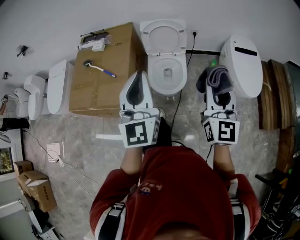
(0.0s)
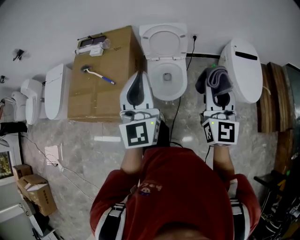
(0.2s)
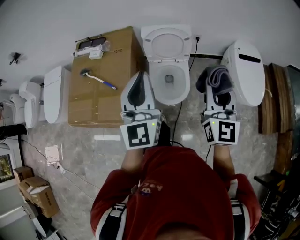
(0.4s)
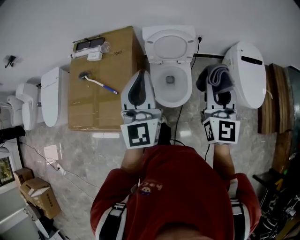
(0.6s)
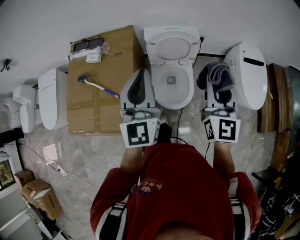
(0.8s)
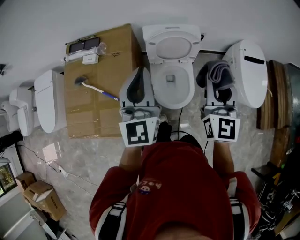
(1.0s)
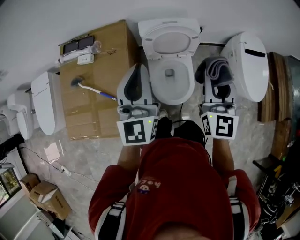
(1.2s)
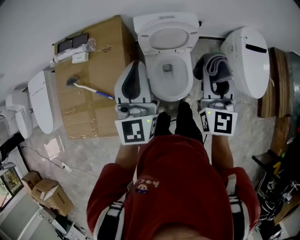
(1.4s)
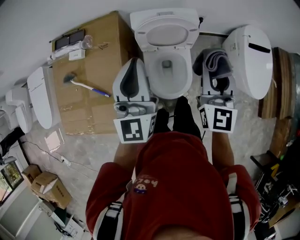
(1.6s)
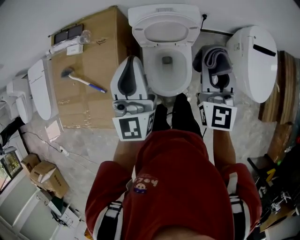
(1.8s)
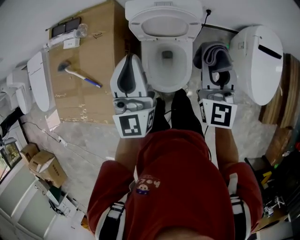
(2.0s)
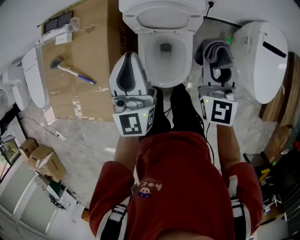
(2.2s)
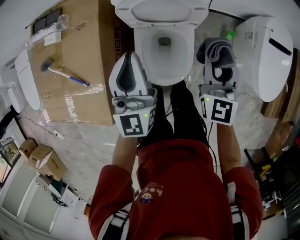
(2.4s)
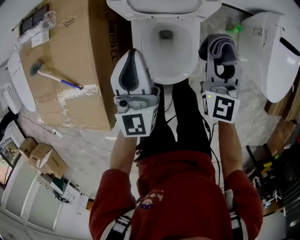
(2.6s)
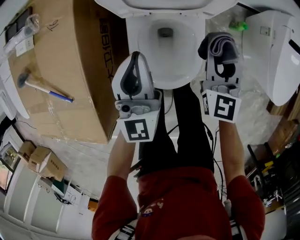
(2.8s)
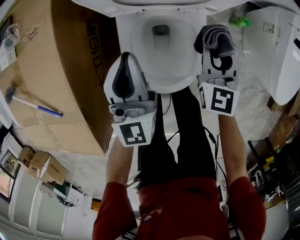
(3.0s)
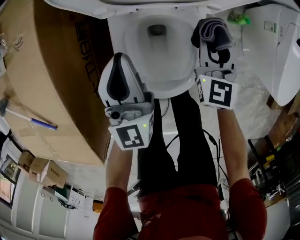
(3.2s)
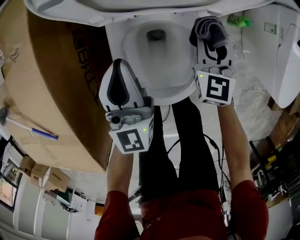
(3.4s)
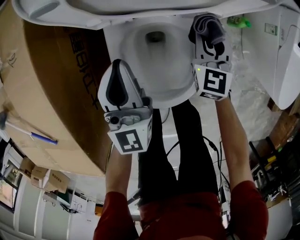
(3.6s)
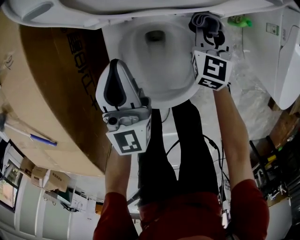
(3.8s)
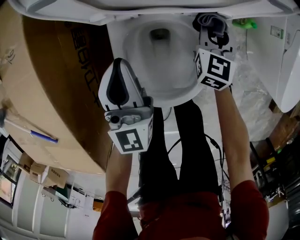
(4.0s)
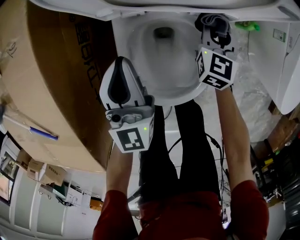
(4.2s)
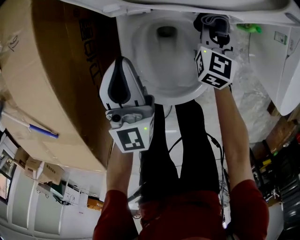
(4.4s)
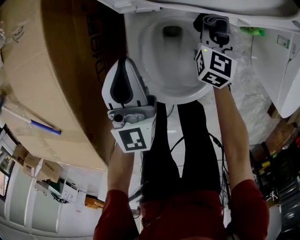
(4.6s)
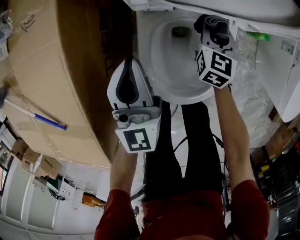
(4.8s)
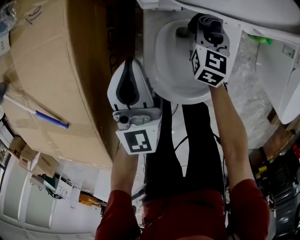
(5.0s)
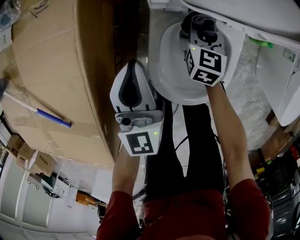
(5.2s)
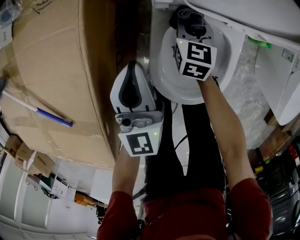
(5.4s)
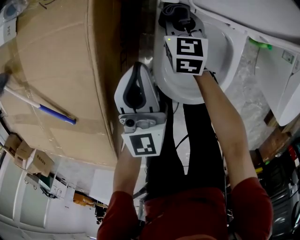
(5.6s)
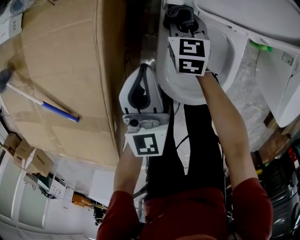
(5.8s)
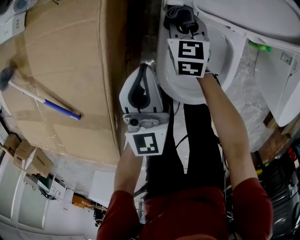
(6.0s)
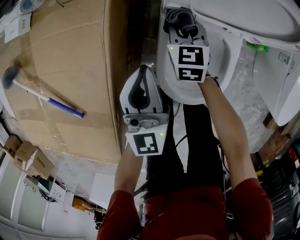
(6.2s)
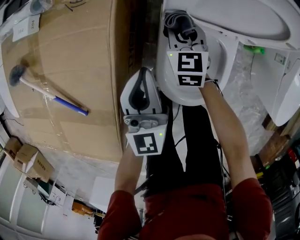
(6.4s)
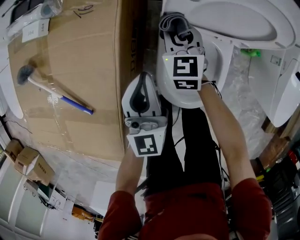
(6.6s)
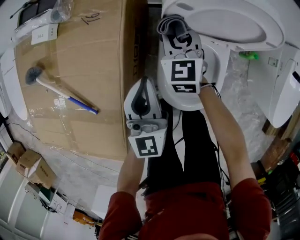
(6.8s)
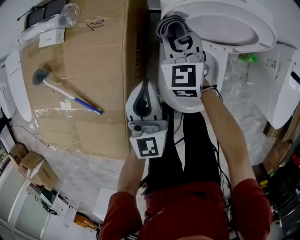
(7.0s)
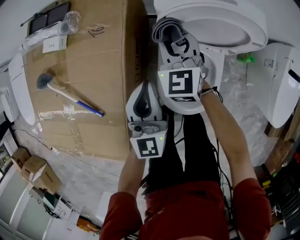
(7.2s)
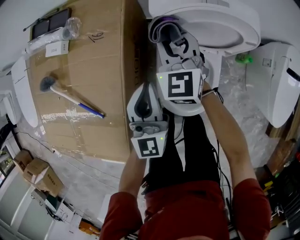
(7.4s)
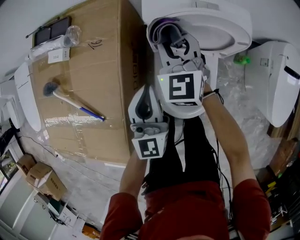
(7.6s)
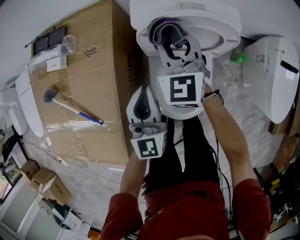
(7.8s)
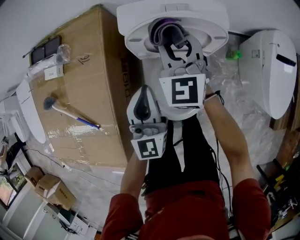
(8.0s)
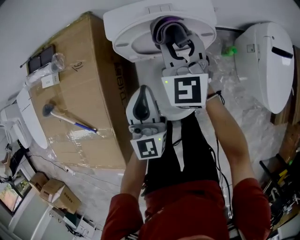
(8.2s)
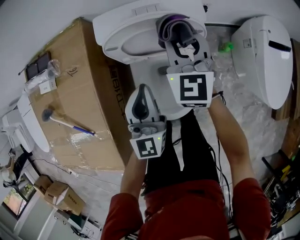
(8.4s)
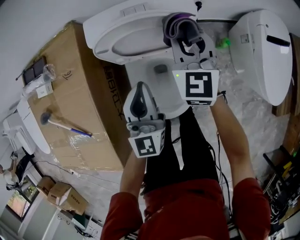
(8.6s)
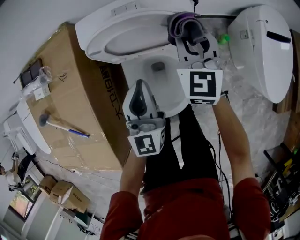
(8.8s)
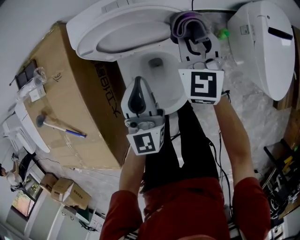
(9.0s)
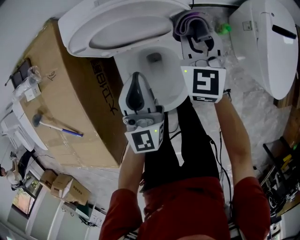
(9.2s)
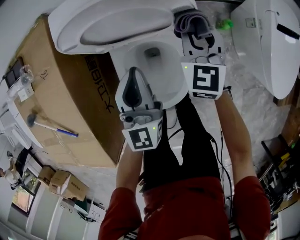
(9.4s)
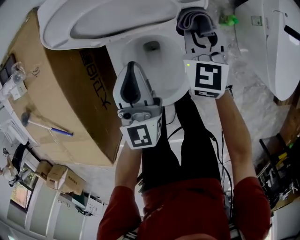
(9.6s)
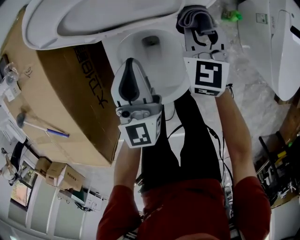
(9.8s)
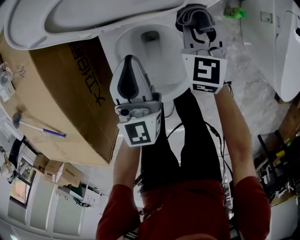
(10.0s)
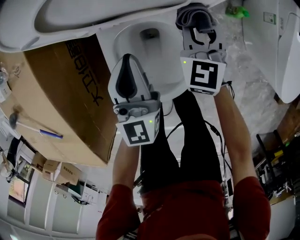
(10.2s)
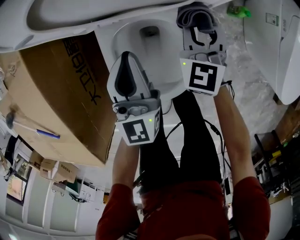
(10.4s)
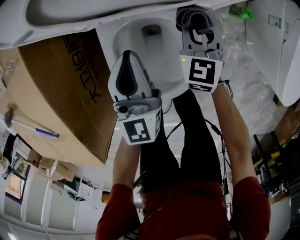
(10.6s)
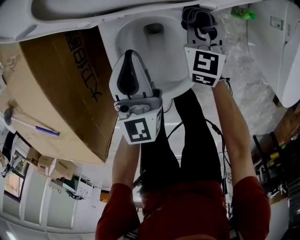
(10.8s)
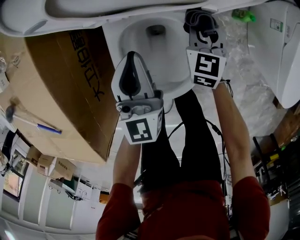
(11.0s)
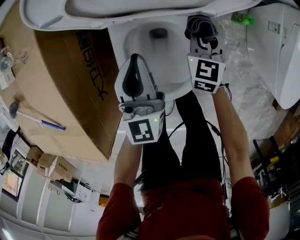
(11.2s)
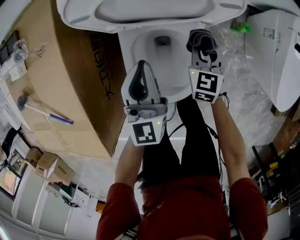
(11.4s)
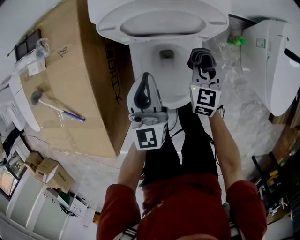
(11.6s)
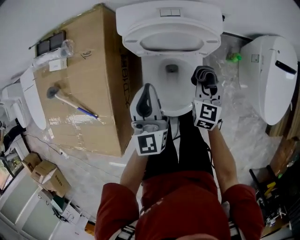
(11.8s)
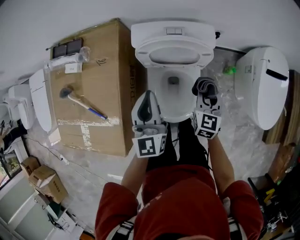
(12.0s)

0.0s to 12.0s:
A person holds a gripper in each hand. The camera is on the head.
0.0s to 1.6s: Both grippers move forward, some 35 cm.
1.6s to 3.0s: Both grippers move downward, about 40 cm.
3.0s to 4.4s: The right gripper goes about 15 cm downward and forward. Meanwhile the left gripper goes roughly 10 cm downward.
4.4s to 6.0s: The left gripper heads to the left, covering roughly 10 cm. The right gripper is displaced to the left by roughly 25 cm, and swivels roughly 20 degrees.
6.0s to 7.6s: The left gripper shifts approximately 15 cm upward. The right gripper moves upward, roughly 30 cm, and changes its angle by some 30 degrees.
7.6s to 9.0s: The right gripper travels to the right by about 25 cm, and rotates approximately 20 degrees. The left gripper moves to the right, approximately 15 cm.
9.0s to 10.4s: Both grippers travel together downward, about 15 cm.
10.4s to 12.0s: The right gripper shifts about 20 cm upward and backward. The left gripper shifts about 25 cm upward.

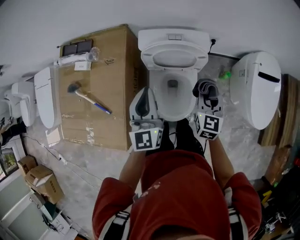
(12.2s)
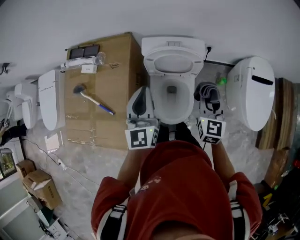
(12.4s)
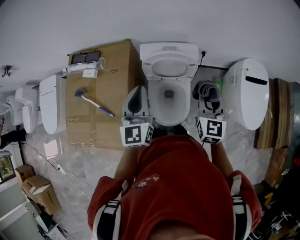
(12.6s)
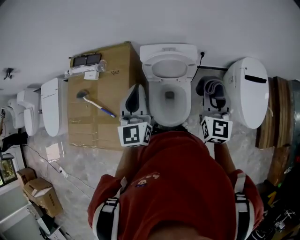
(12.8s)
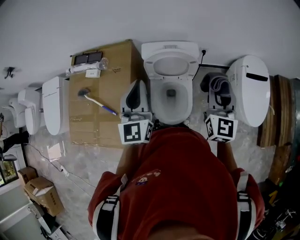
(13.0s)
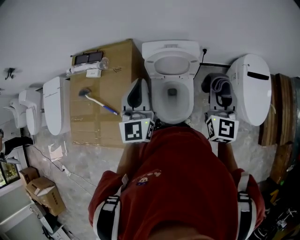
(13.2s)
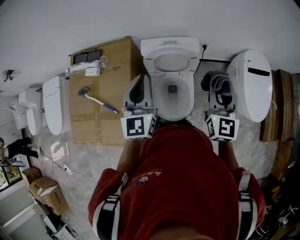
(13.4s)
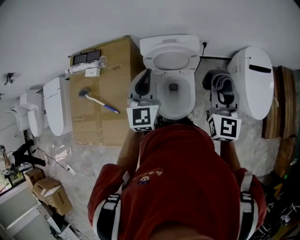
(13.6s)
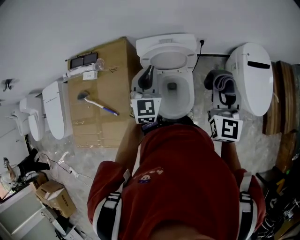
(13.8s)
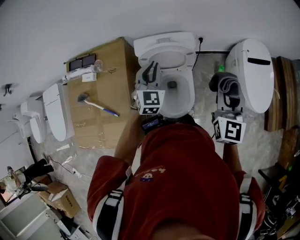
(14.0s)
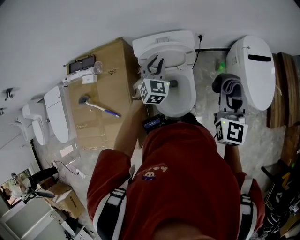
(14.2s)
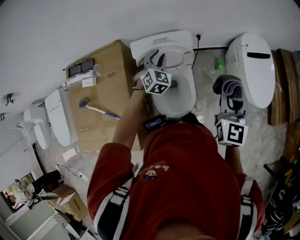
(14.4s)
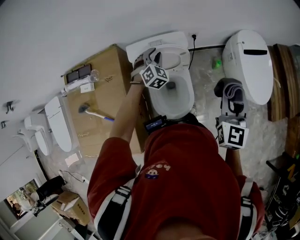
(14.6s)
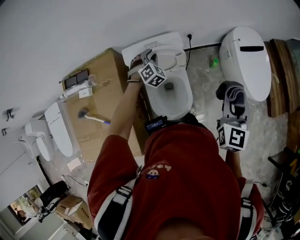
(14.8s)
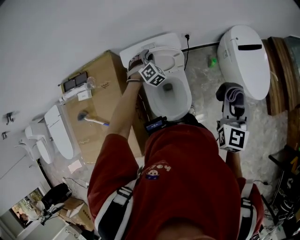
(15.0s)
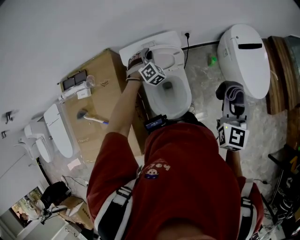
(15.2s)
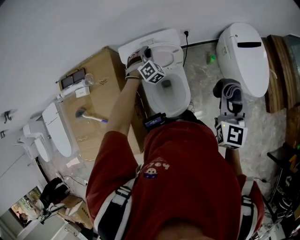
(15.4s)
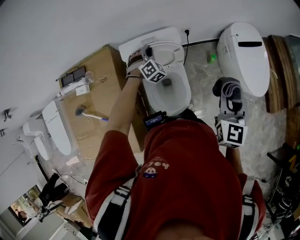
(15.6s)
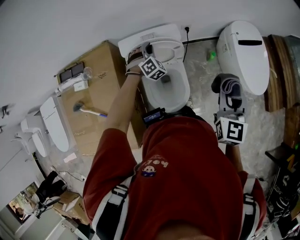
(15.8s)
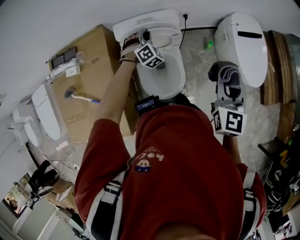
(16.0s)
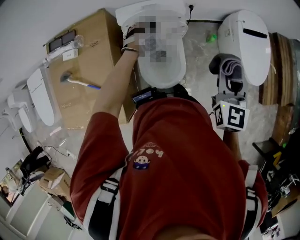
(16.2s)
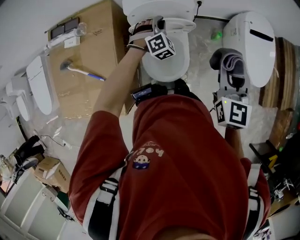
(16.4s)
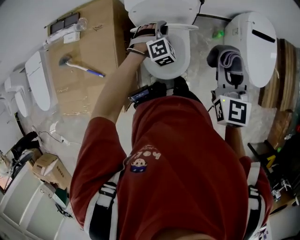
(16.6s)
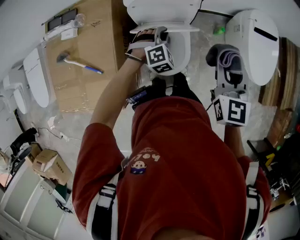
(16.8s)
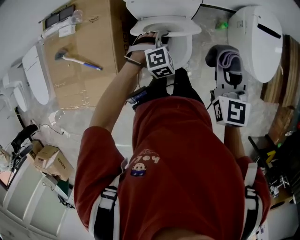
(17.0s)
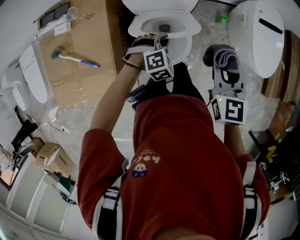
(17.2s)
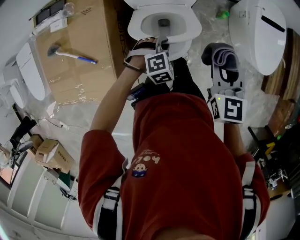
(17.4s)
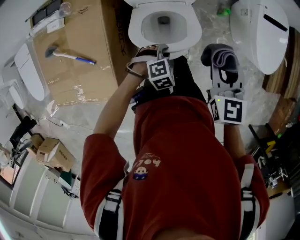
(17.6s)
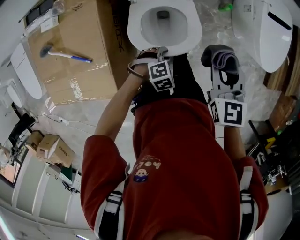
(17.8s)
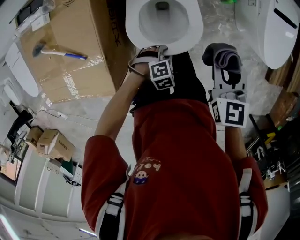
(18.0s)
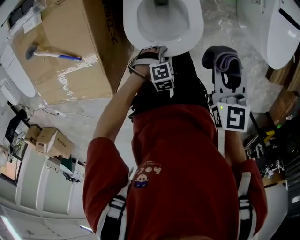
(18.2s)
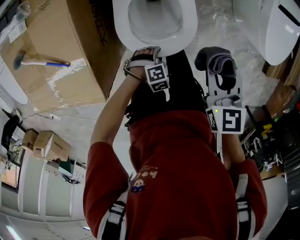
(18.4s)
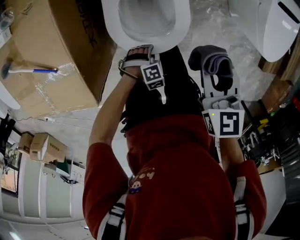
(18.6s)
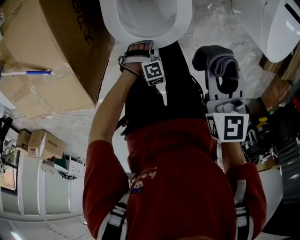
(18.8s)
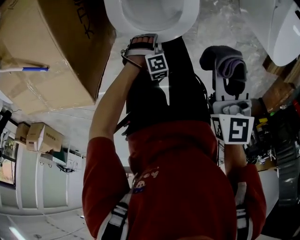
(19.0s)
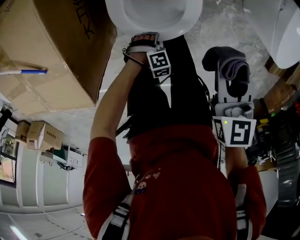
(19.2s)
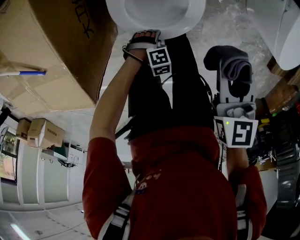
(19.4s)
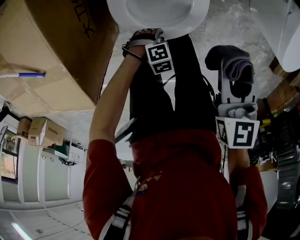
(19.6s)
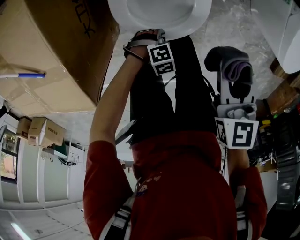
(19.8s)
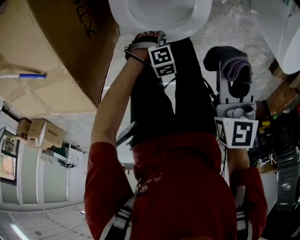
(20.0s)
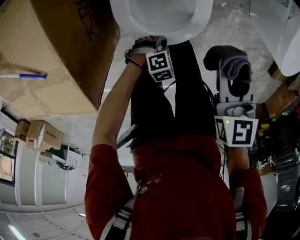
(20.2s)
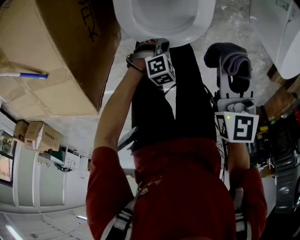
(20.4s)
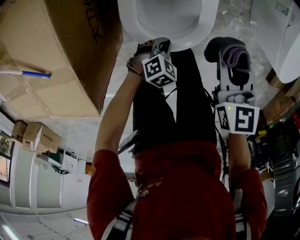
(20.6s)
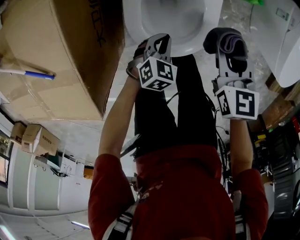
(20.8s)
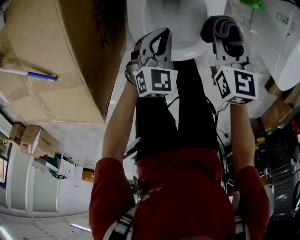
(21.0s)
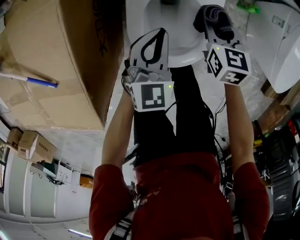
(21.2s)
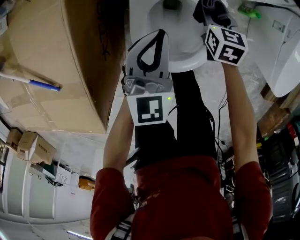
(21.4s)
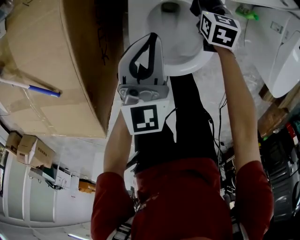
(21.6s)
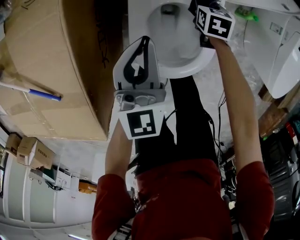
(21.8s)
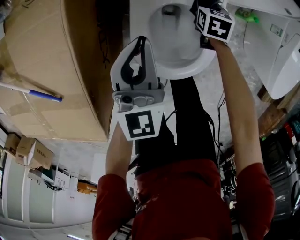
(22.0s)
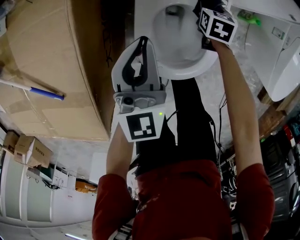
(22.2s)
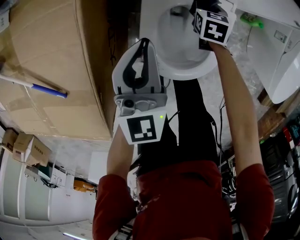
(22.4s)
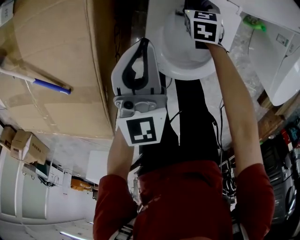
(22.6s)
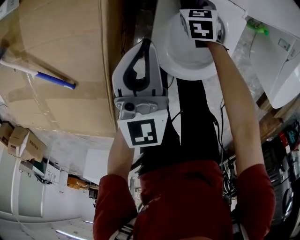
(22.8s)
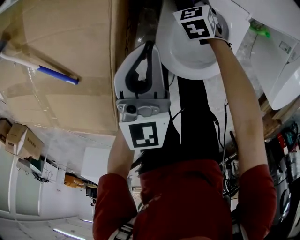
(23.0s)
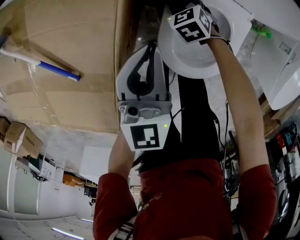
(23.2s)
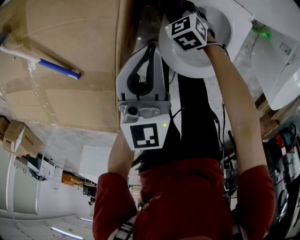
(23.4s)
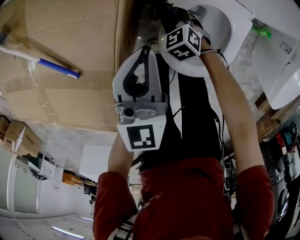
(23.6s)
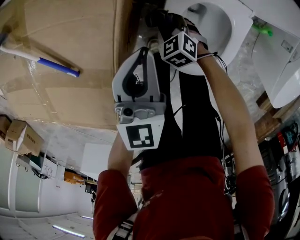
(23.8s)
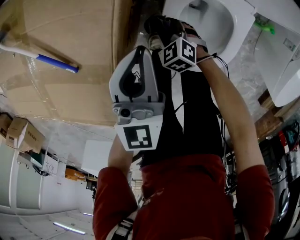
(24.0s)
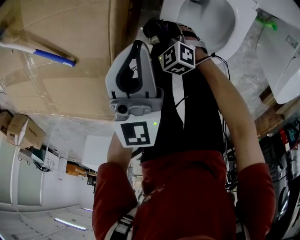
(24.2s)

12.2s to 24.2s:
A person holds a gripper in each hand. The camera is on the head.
12.2s to 13.8s: The left gripper changes its angle by some 30 degrees. The right gripper moves upward, about 20 cm.
13.8s to 15.2s: The right gripper moves to the right, about 10 cm. The left gripper shifts about 25 cm downward and forward, and rolls clockwise, seen from behind, by approximately 50 degrees.
15.2s to 16.6s: The left gripper travels backward by some 15 cm. The right gripper goes roughly 10 cm to the left, and swivels about 20 degrees.
16.6s to 18.2s: The left gripper ends up about 35 cm from where it was, angles its fingers downward, by roughly 30 degrees, and opens its fingers. The right gripper is displaced downward by roughly 20 cm, and swivels some 20 degrees.
18.2s to 19.8s: The two grippers go roughly 15 cm downward.
19.8s to 21.2s: The left gripper shifts by about 30 cm, angles its fingers upward, by some 50 degrees, and closes up; the right gripper changes place by some 20 cm.
21.2s to 22.6s: The right gripper shifts about 20 cm to the left, downward and forward. Meanwhile the left gripper is displaced to the left and upward by about 15 cm, and turns by approximately 30 degrees.
22.6s to 24.2s: The left gripper moves roughly 10 cm, while the right gripper shifts by some 30 cm, and rolls counterclockwise, seen from behind, by approximately 40 degrees.
